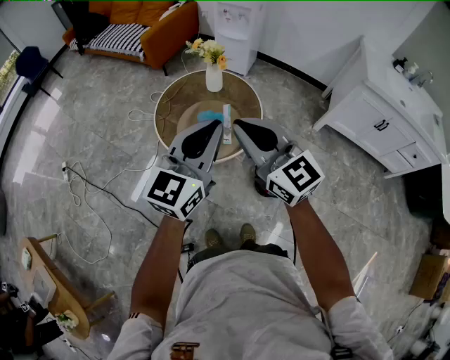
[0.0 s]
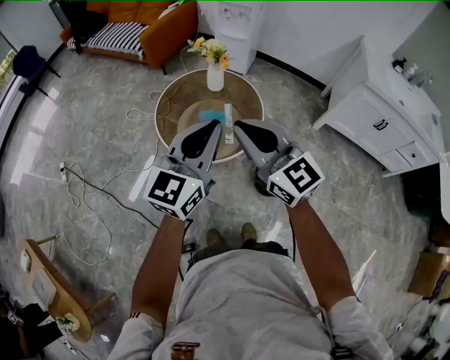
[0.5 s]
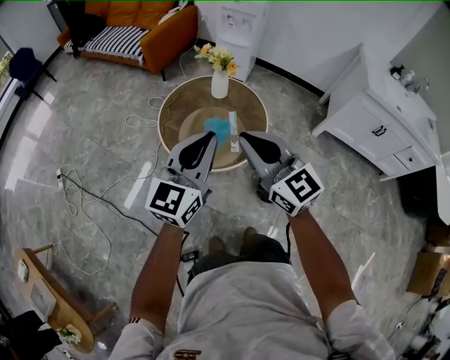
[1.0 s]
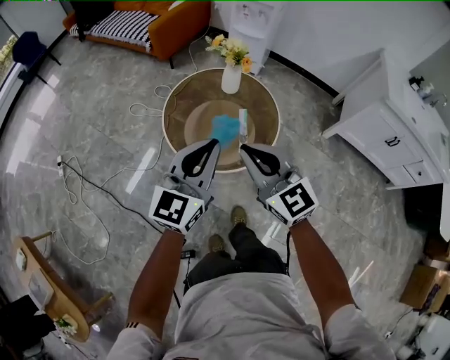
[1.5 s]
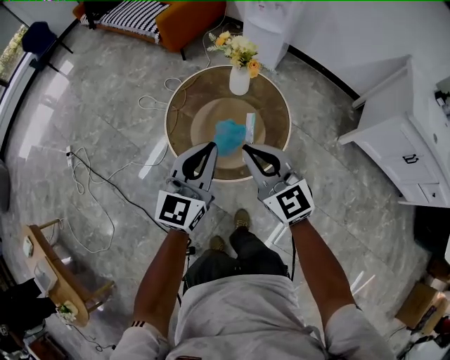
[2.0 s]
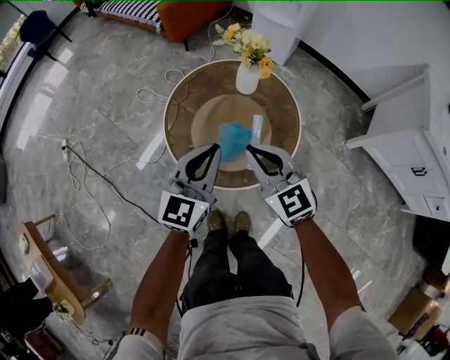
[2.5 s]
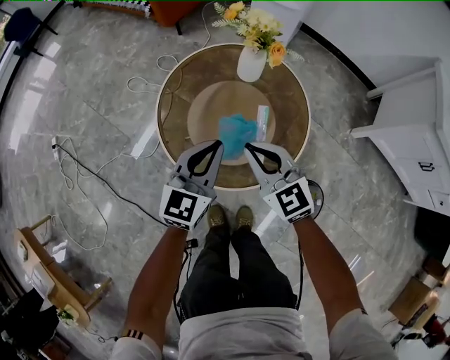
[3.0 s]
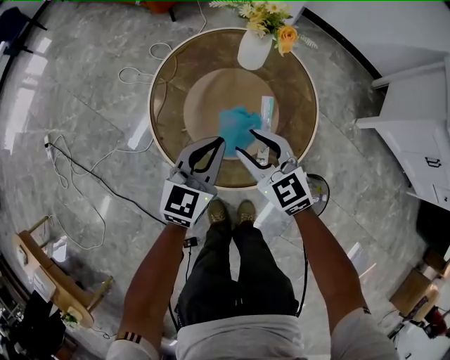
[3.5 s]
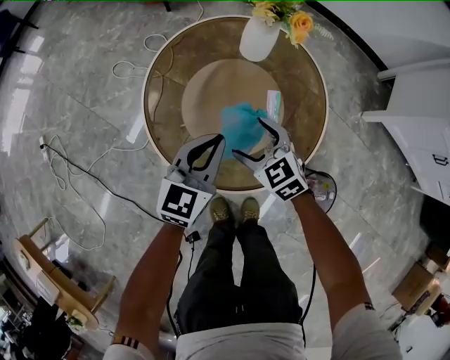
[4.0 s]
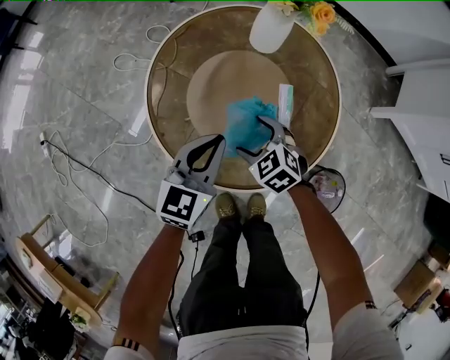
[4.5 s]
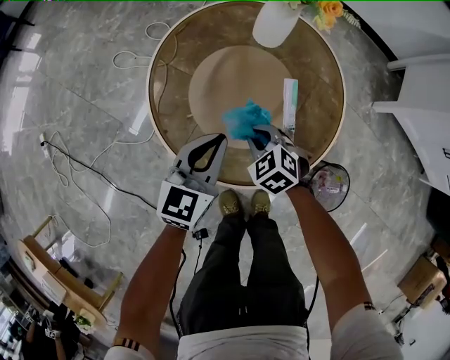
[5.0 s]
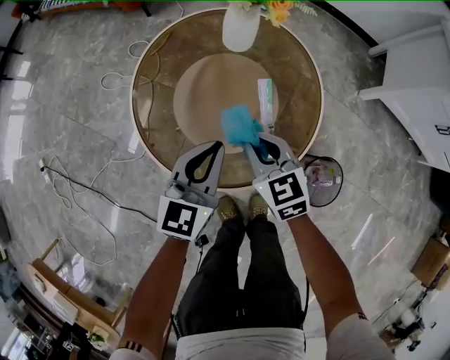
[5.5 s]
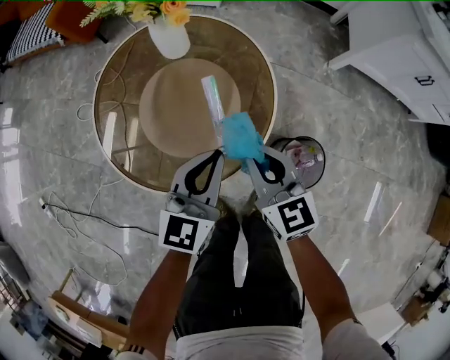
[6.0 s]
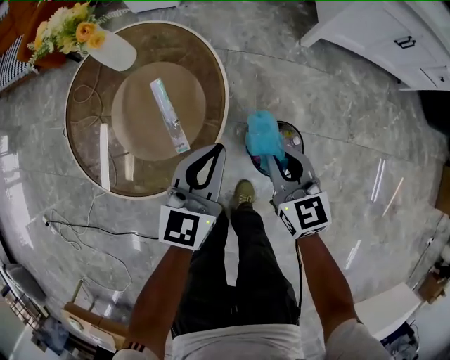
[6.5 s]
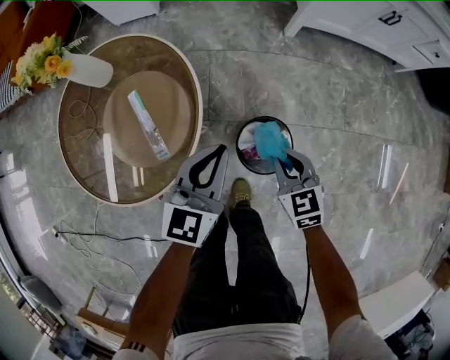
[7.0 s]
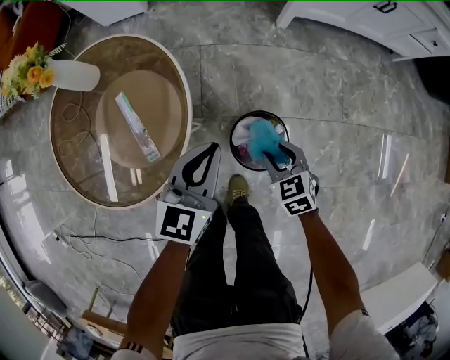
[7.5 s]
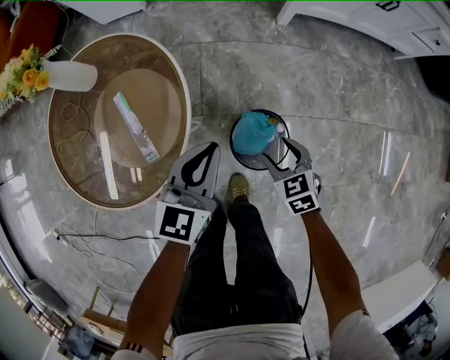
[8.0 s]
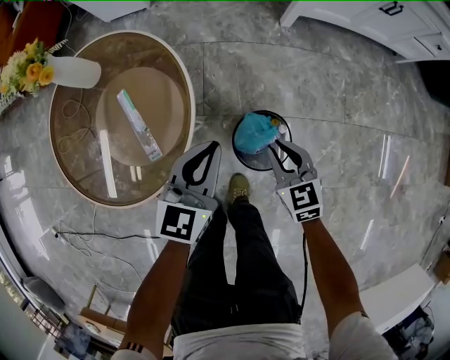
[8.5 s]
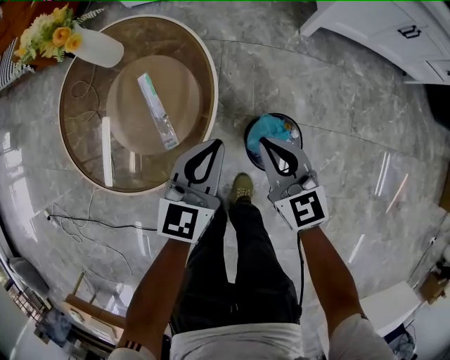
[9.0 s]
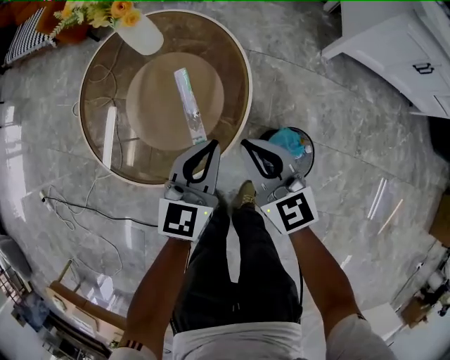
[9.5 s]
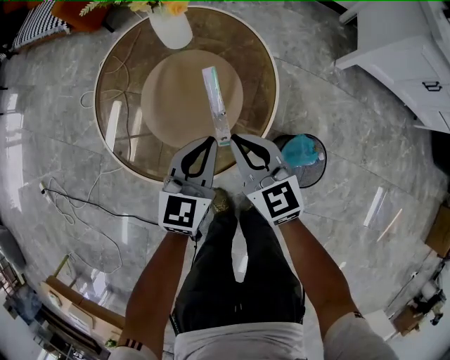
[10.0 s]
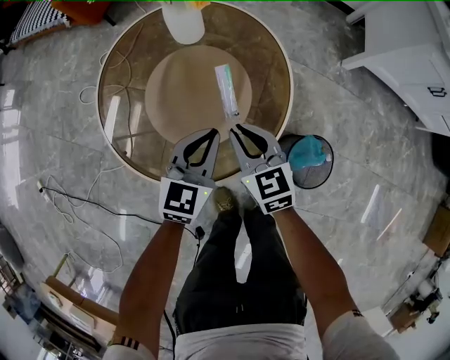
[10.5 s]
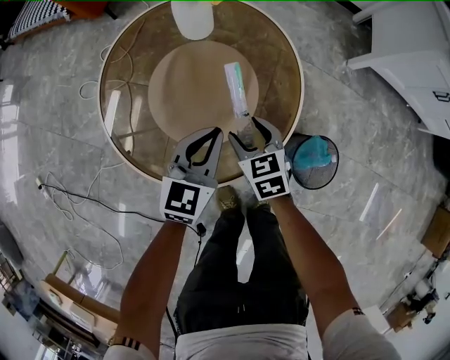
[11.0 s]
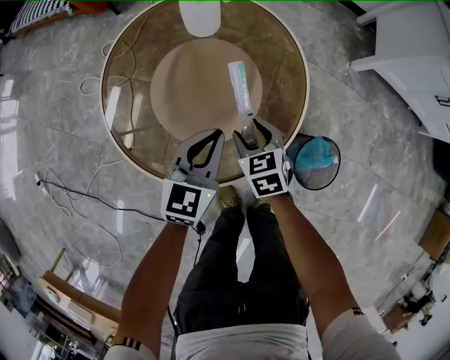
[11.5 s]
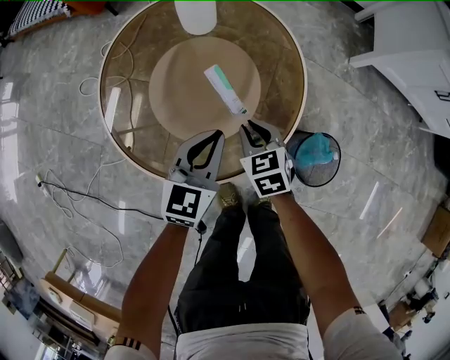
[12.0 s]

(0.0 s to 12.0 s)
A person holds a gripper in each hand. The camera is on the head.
0.0 s - 2.0 s: The two grippers go some 20 cm forward and downward.
2.0 s - 4.0 s: The right gripper travels downward by about 35 cm, tilts its fingers approximately 30 degrees downward, and opens up, while the left gripper shifts some 30 cm downward and forward.
4.0 s - 6.0 s: The right gripper moves to the right, upward and backward, some 20 cm, turns by about 40 degrees, and closes; the left gripper moves to the right and backward, roughly 15 cm.
6.0 s - 8.0 s: The right gripper goes approximately 35 cm to the right and downward, tilts its fingers about 30 degrees downward, and opens. The left gripper moves to the right, approximately 25 cm.
8.0 s - 10.0 s: The right gripper travels to the left and upward by roughly 35 cm, tilts its fingers roughly 30 degrees upward, and closes up. The left gripper heads to the left, covering approximately 25 cm.
10.0 s - 12.0 s: The right gripper shifts some 15 cm downward, rotates approximately 30 degrees, and opens and closes again. The left gripper goes about 5 cm to the left and downward.

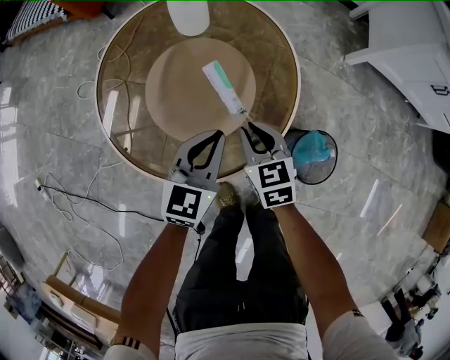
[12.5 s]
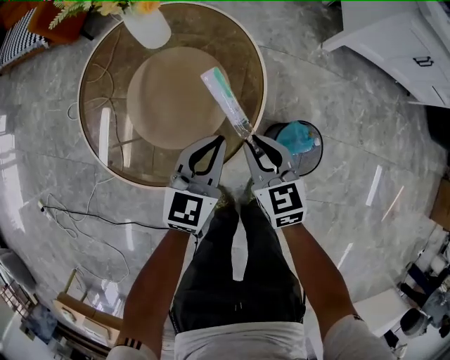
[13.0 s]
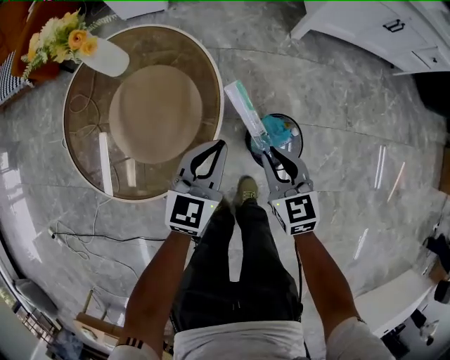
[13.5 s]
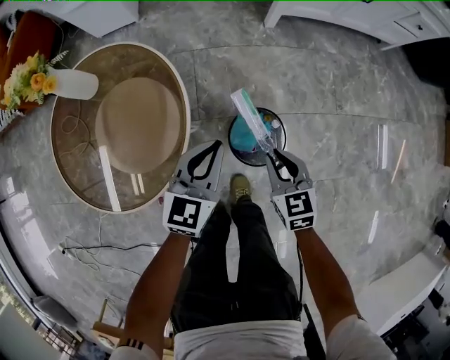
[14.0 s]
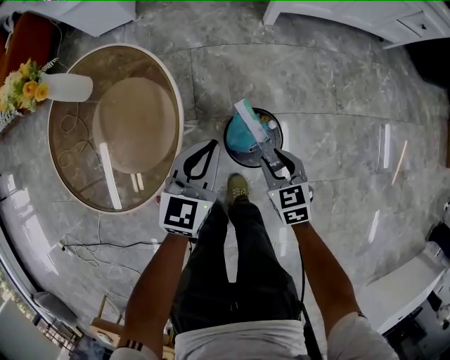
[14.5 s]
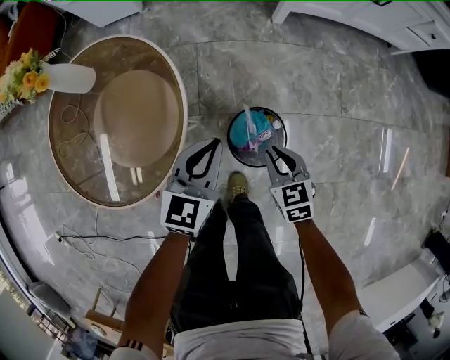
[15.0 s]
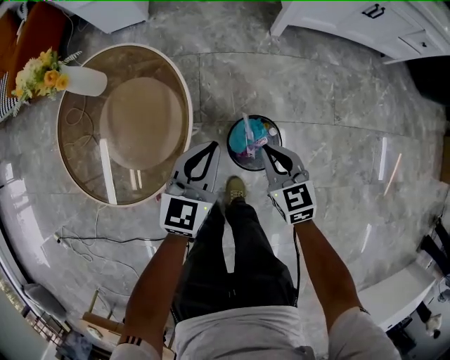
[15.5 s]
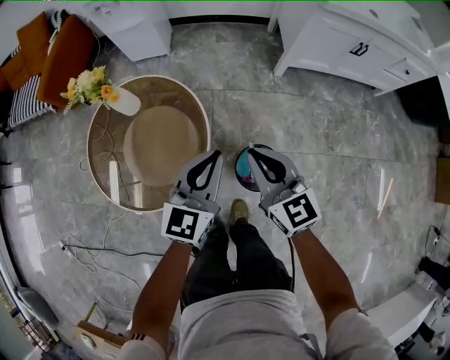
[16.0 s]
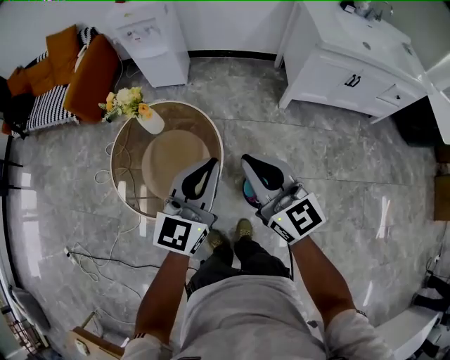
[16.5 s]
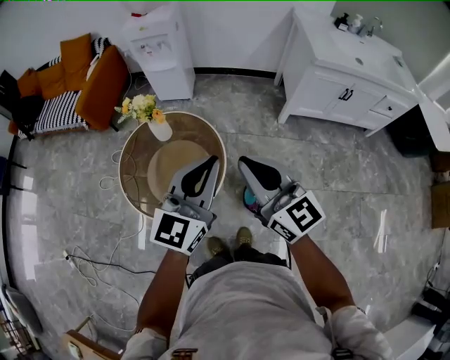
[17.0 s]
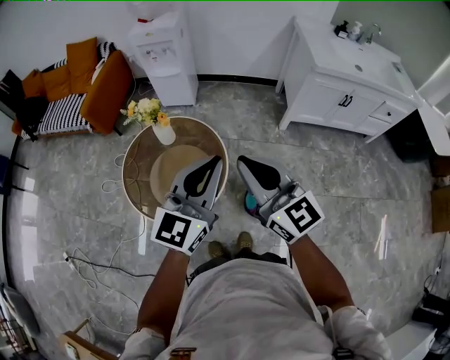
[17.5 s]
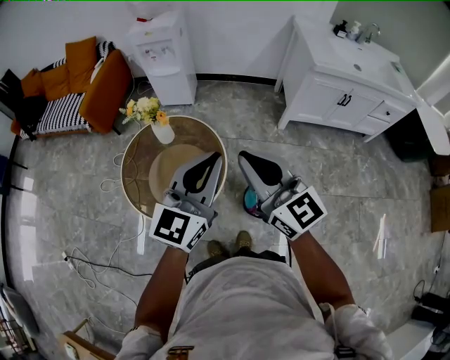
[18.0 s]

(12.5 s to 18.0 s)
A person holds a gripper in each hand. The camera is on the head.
12.5 s - 14.5 s: The two grippers go roughly 35 cm to the right. The right gripper swivels about 20 degrees.
14.5 s - 16.0 s: Both grippers move upward, approximately 25 cm. The right gripper angles its fingers upward, by some 40 degrees.
16.0 s - 18.0 s: Both grippers travel together upward, approximately 25 cm.

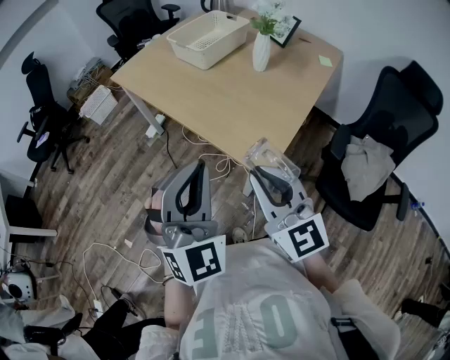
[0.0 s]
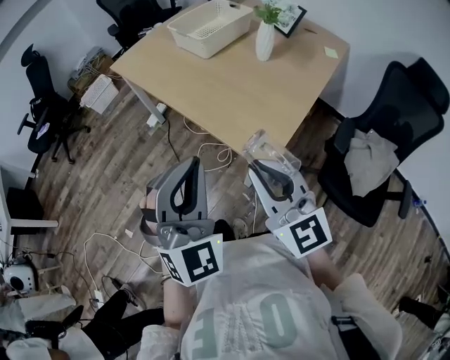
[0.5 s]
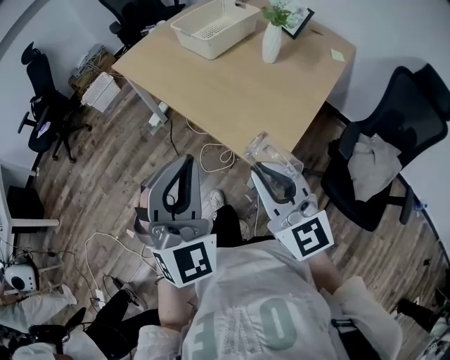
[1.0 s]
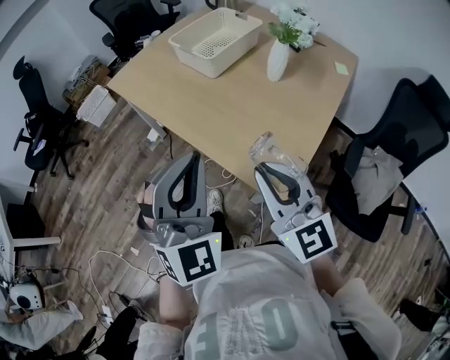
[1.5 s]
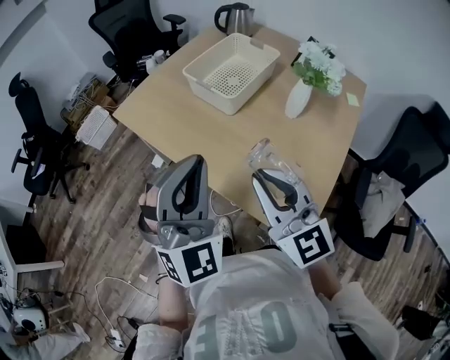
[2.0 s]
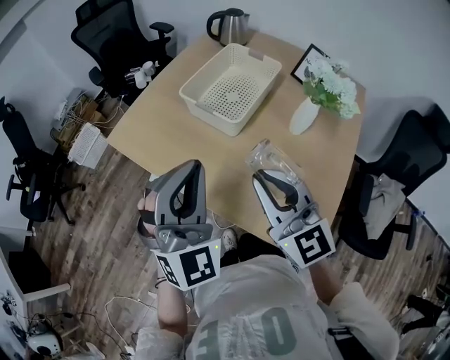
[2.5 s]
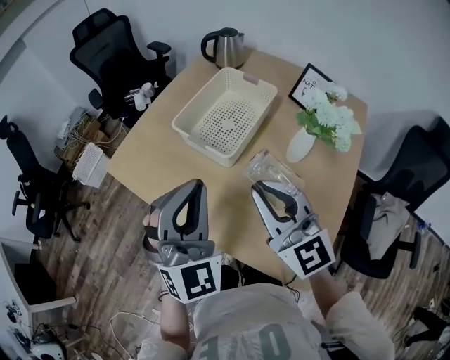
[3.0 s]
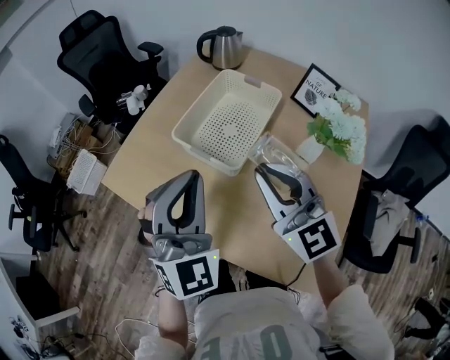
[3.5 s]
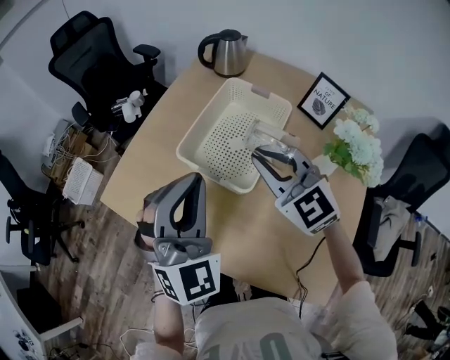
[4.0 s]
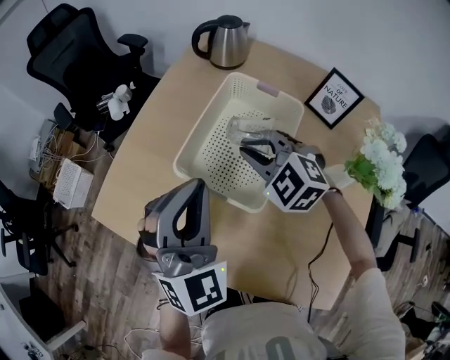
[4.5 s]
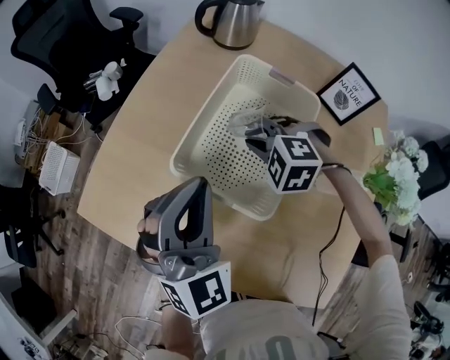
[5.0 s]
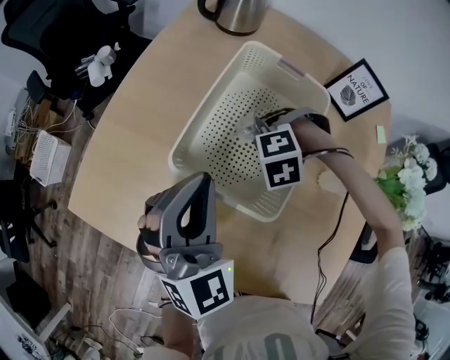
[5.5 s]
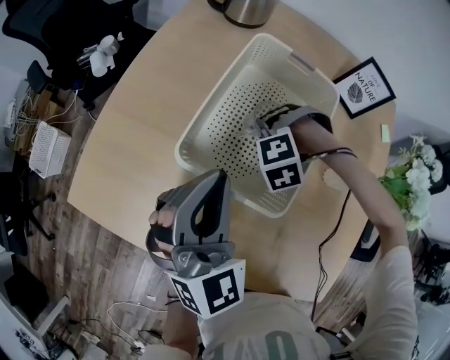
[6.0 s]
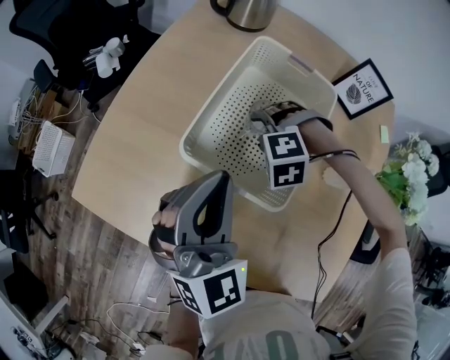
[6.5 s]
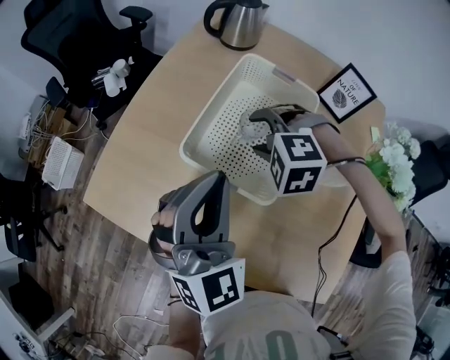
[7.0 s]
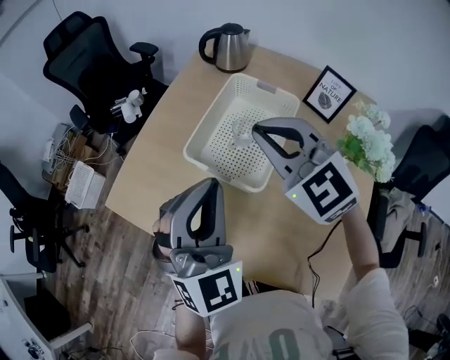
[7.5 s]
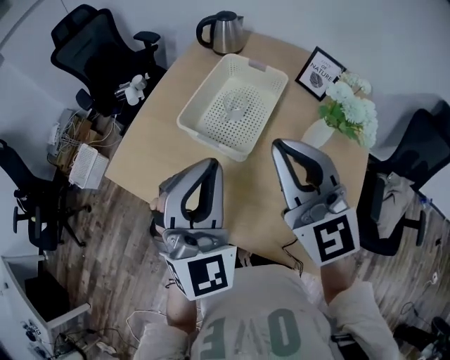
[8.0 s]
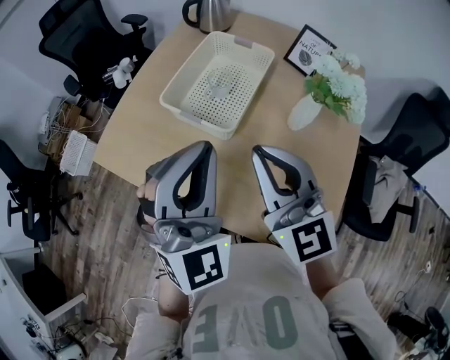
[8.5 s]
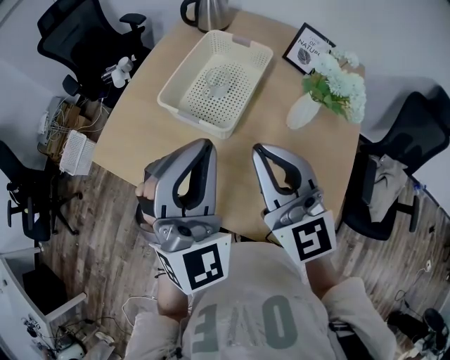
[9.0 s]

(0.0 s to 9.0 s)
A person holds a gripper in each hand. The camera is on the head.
0.0 s - 2.0 s: The grippers both shift forward by about 30 cm.
2.0 s - 4.5 s: The grippers both shift forward by roughly 40 cm. The right gripper tips its fingers downward by about 40 degrees.
4.5 s - 7.0 s: The left gripper reaches approximately 10 cm downward, then returns; the right gripper travels downward and back again, approximately 20 cm each way, swivels about 30 degrees, and opens.
7.0 s - 9.0 s: The left gripper moves backward, upward and to the right, some 20 cm. The right gripper shifts about 35 cm backward and upward, angles its fingers upward, by approximately 70 degrees, and closes.
